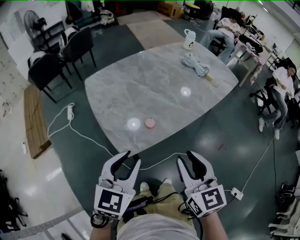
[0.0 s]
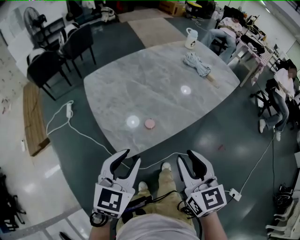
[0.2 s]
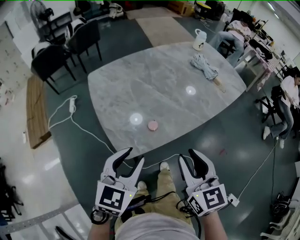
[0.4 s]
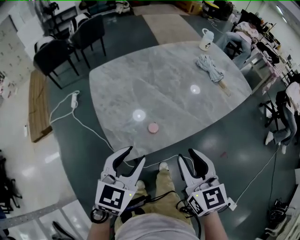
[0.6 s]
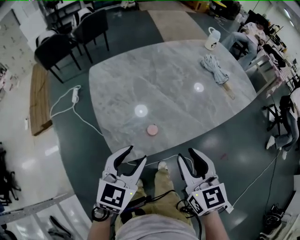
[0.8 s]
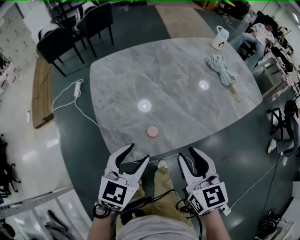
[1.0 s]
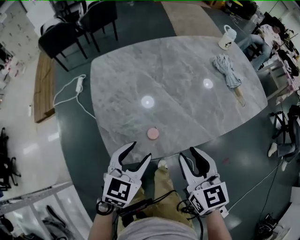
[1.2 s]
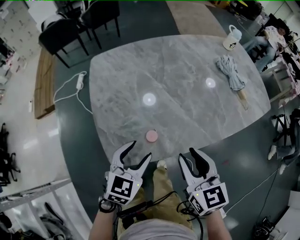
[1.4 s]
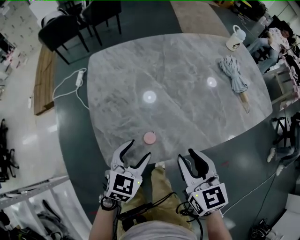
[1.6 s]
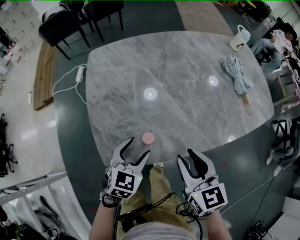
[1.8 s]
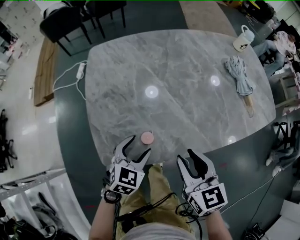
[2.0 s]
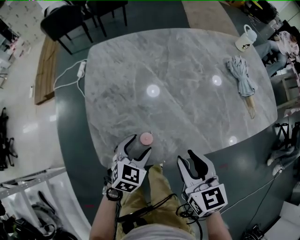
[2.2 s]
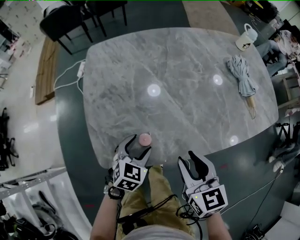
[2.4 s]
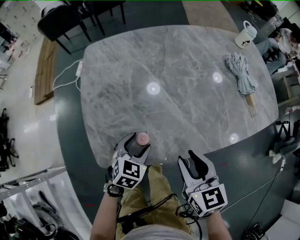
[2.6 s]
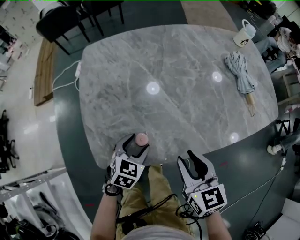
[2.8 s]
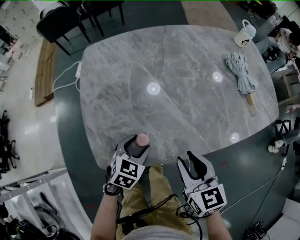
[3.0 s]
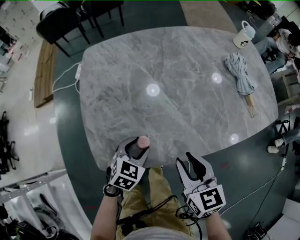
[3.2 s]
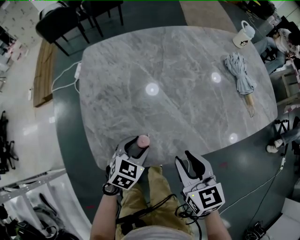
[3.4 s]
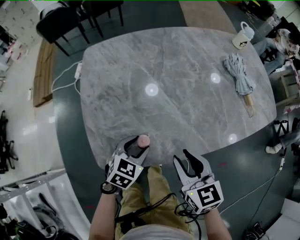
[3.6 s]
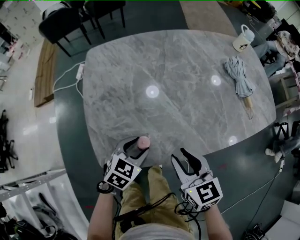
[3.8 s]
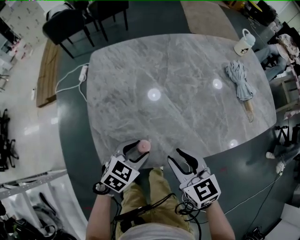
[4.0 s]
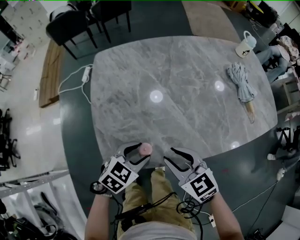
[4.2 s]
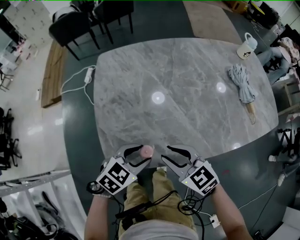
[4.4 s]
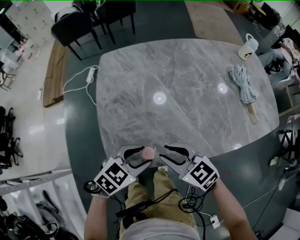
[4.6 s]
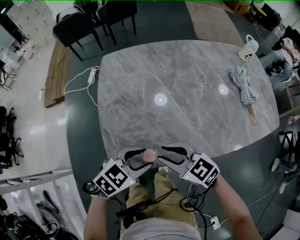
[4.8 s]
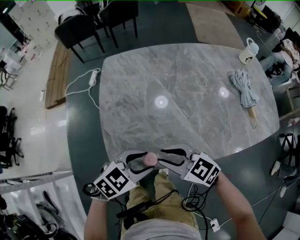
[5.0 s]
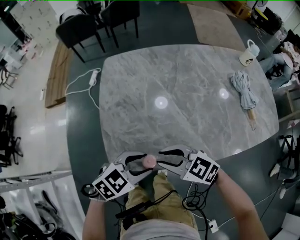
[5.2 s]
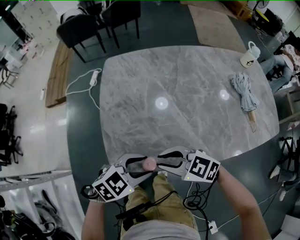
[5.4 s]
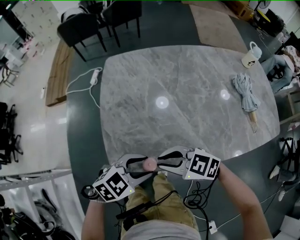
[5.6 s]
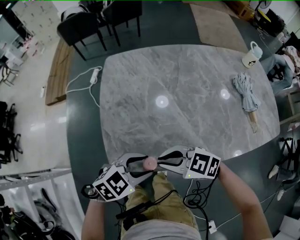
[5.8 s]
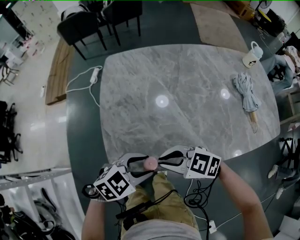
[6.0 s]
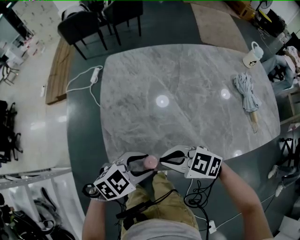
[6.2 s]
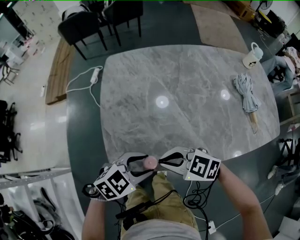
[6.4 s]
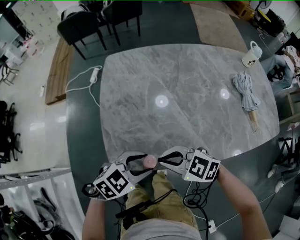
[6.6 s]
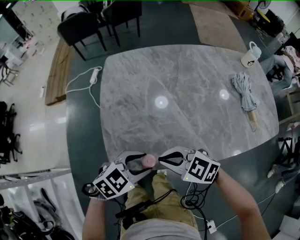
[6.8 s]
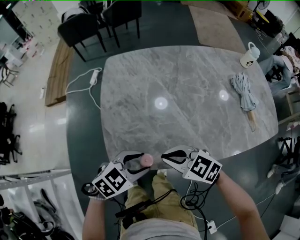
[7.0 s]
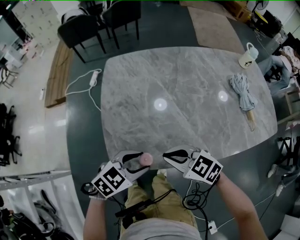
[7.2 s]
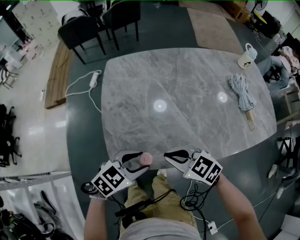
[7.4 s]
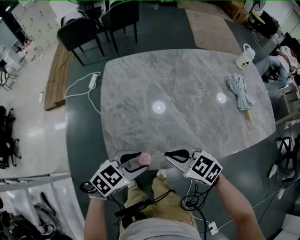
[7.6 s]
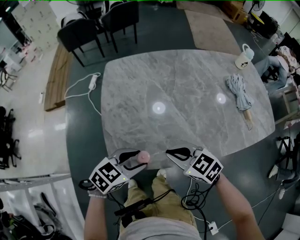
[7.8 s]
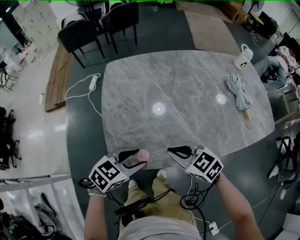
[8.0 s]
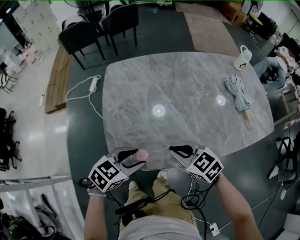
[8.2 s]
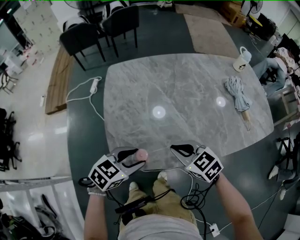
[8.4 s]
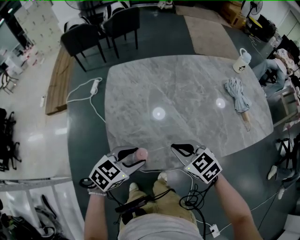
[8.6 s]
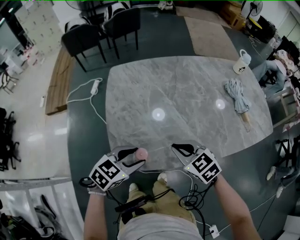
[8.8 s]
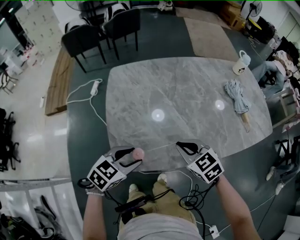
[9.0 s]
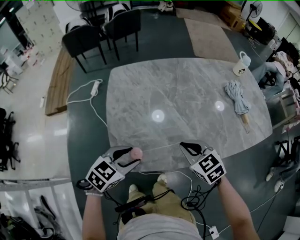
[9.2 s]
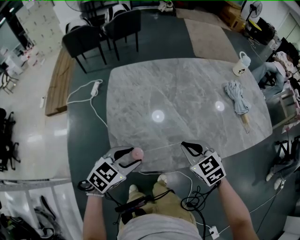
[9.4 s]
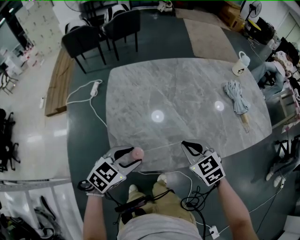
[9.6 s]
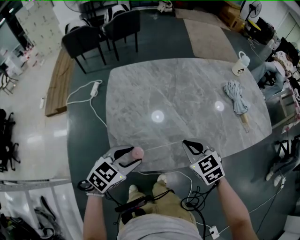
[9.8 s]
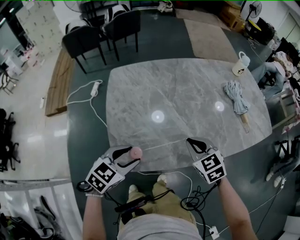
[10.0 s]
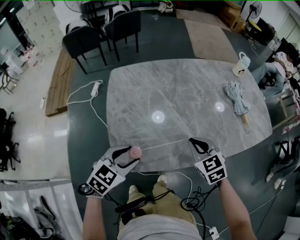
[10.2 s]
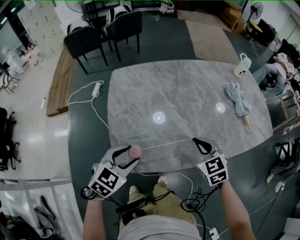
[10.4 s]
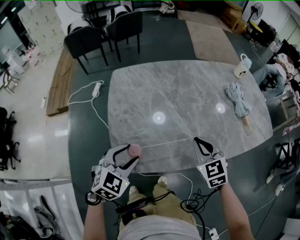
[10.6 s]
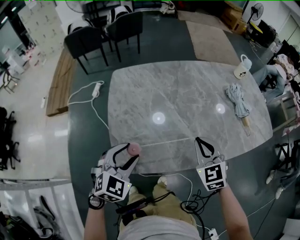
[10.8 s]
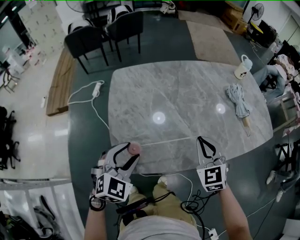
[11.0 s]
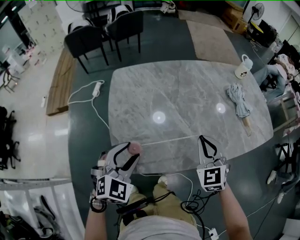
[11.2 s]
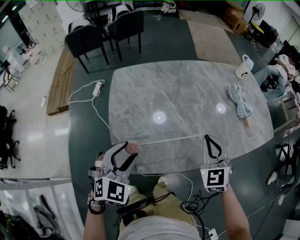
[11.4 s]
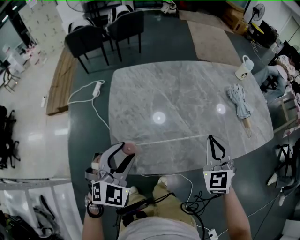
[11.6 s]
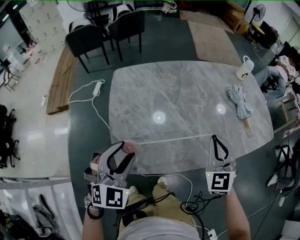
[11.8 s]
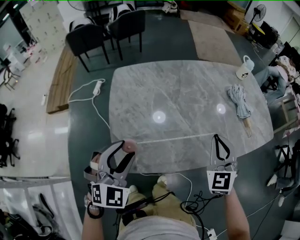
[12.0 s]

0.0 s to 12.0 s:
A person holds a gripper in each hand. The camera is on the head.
0.0 to 1.6 s: Both grippers move forward and downward, approximately 20 cm. The right gripper rotates approximately 20 degrees; the left gripper opens.
1.6 to 3.0 s: The left gripper moves downward, some 10 cm. The right gripper changes place by roughly 5 cm.
3.0 to 4.4 s: The right gripper moves to the left, some 10 cm, and swivels some 30 degrees; the left gripper moves upward, approximately 5 cm.
4.4 to 6.0 s: The right gripper turns by roughly 40 degrees, and closes up.
6.0 to 7.6 s: The right gripper turns by roughly 20 degrees.
7.6 to 9.0 s: The right gripper shifts by roughly 5 cm, and changes its angle by approximately 20 degrees.
9.0 to 10.4 s: The right gripper heads to the right, covering some 5 cm.
10.4 to 12.0 s: Both grippers travel together upward, about 10 cm. The left gripper turns by approximately 30 degrees. Meanwhile the right gripper turns by some 30 degrees.

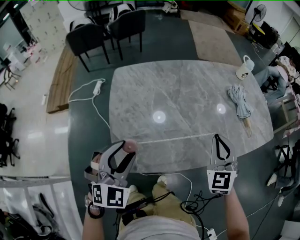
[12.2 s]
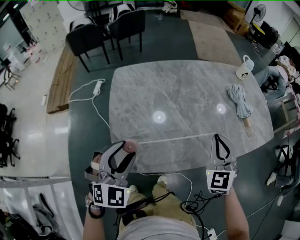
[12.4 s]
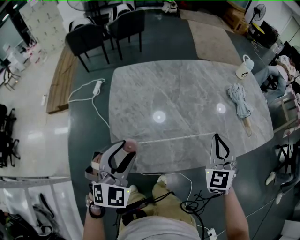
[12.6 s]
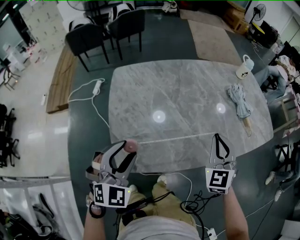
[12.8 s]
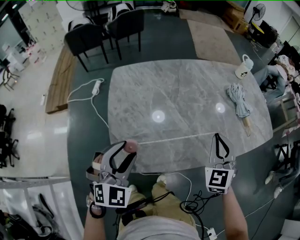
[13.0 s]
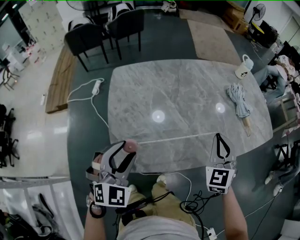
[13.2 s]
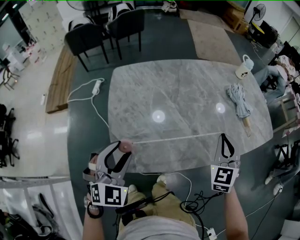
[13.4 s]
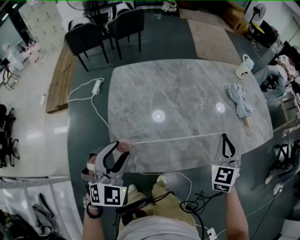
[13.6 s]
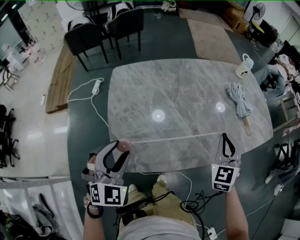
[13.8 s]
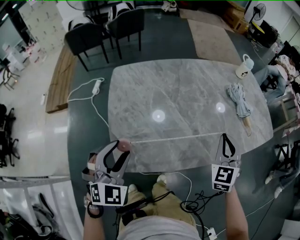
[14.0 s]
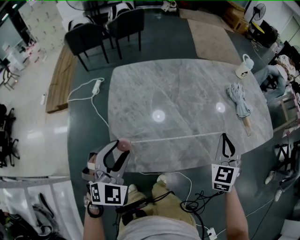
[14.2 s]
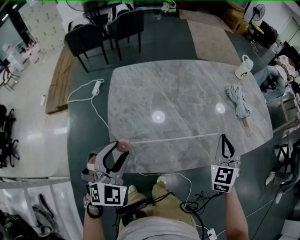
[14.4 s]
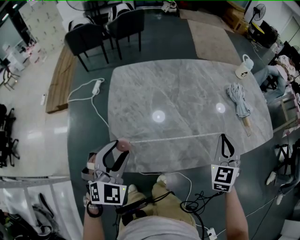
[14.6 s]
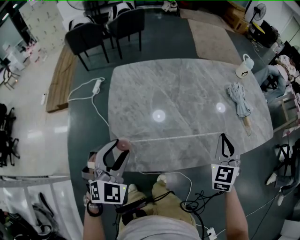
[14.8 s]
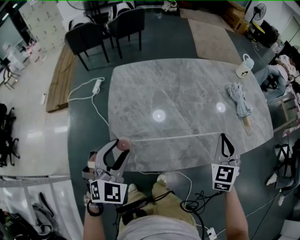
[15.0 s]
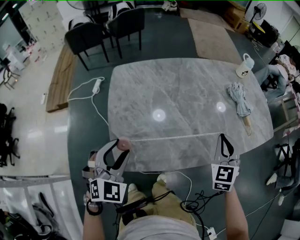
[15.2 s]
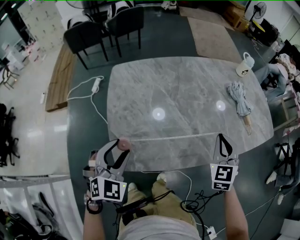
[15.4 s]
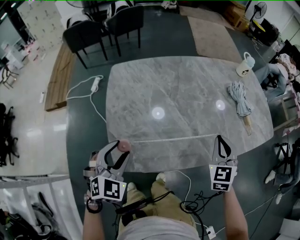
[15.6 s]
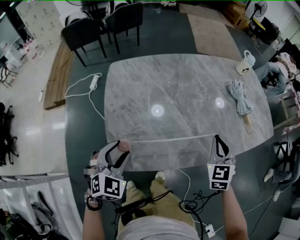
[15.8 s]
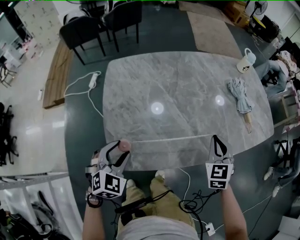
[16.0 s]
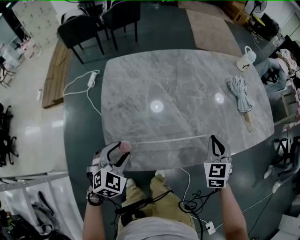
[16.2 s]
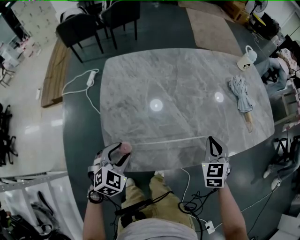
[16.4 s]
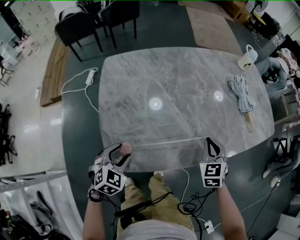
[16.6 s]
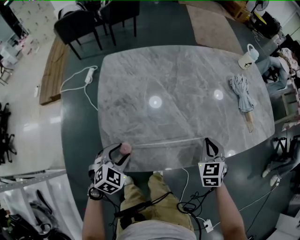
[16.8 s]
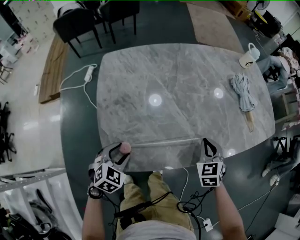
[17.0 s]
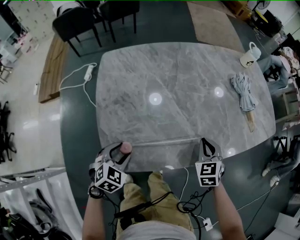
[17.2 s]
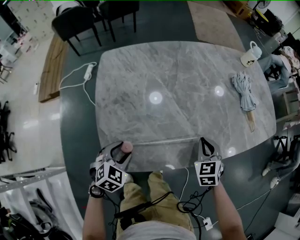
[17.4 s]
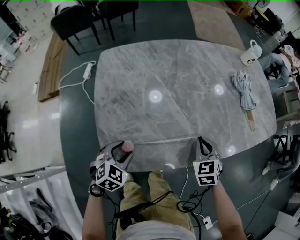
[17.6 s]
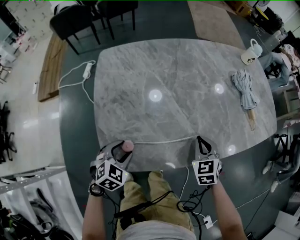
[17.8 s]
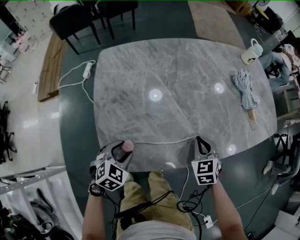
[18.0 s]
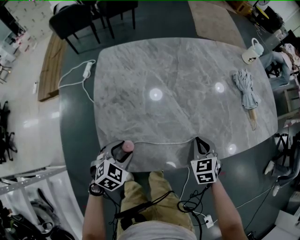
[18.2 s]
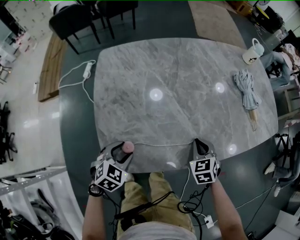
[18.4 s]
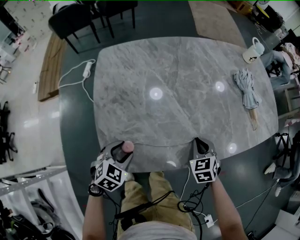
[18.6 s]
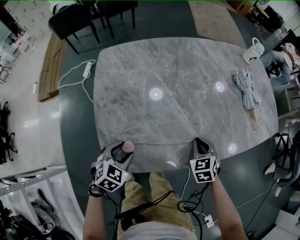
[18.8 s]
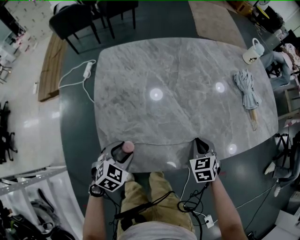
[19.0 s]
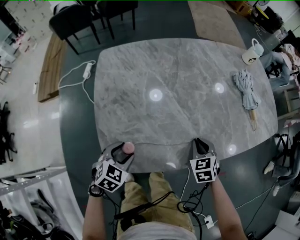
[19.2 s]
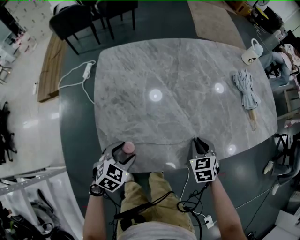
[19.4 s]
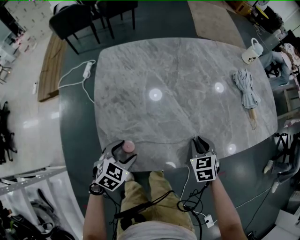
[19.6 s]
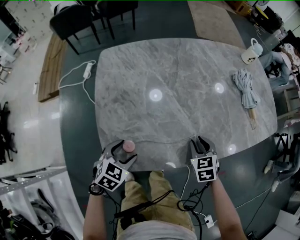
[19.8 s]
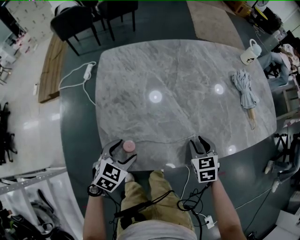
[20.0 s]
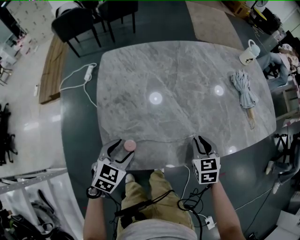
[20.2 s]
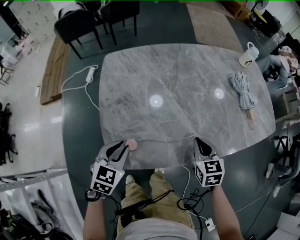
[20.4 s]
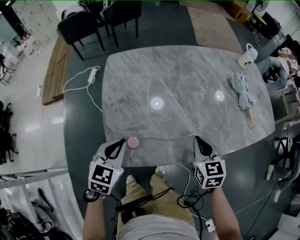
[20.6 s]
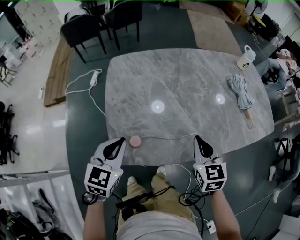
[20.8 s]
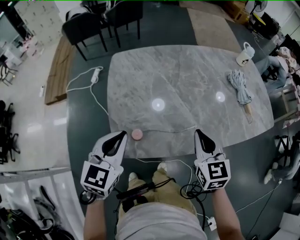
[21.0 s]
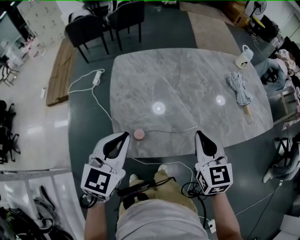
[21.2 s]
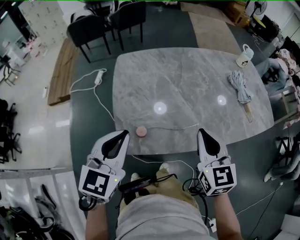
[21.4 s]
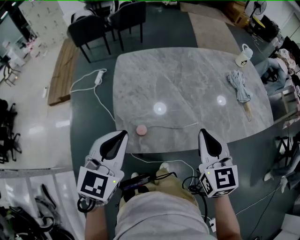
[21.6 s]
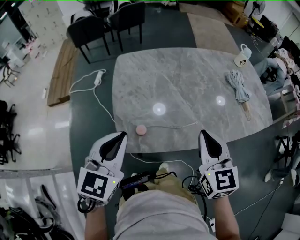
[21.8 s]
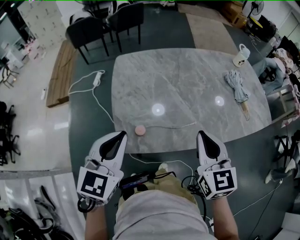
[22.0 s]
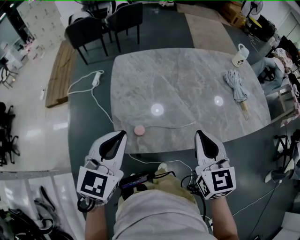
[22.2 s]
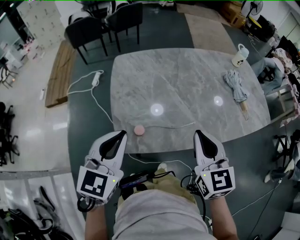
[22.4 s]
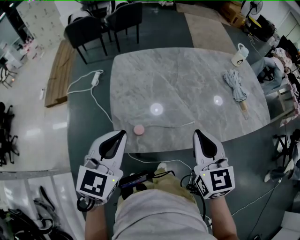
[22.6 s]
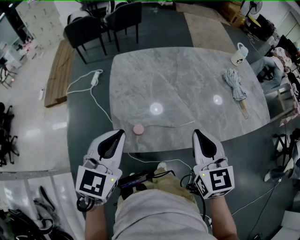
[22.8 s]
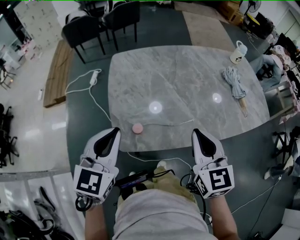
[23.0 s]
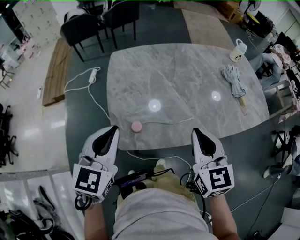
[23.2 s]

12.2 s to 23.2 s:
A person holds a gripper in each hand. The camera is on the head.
12.2 to 15.4 s: The grippers move only a little.
15.4 to 17.0 s: Both grippers travel together downward, approximately 15 cm. The left gripper changes its angle by some 20 degrees.
17.0 to 18.4 s: The right gripper ends up approximately 5 cm from where it was.
18.4 to 20.0 s: The right gripper opens its fingers.
20.0 to 21.6 s: Both grippers move upward, some 25 cm. The left gripper turns by about 30 degrees, and closes, while the right gripper angles its fingers upward, by approximately 30 degrees, and closes its fingers.
21.6 to 23.2 s: The grippers move only a little.

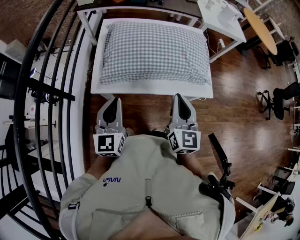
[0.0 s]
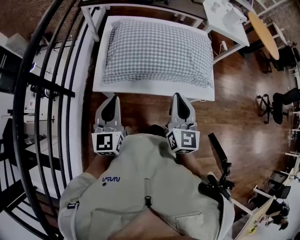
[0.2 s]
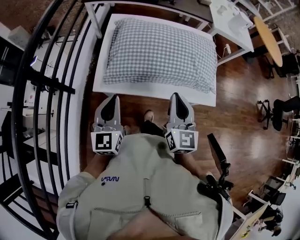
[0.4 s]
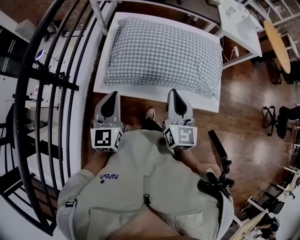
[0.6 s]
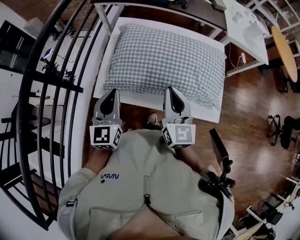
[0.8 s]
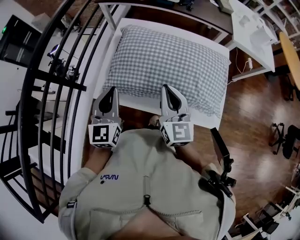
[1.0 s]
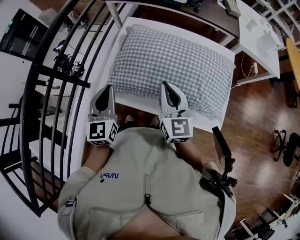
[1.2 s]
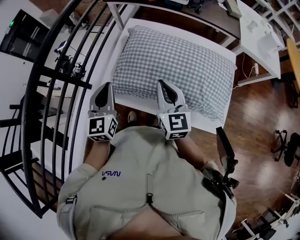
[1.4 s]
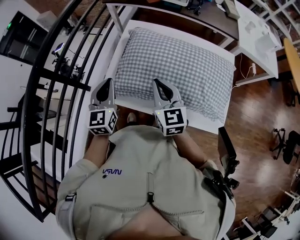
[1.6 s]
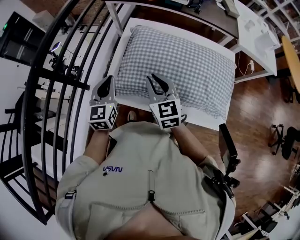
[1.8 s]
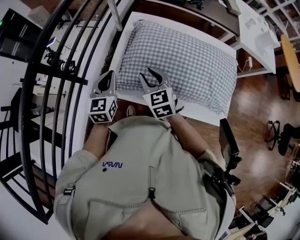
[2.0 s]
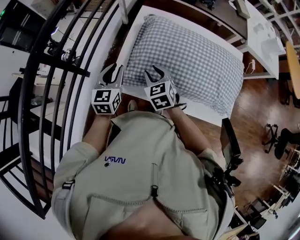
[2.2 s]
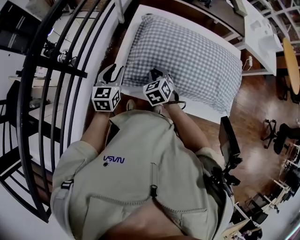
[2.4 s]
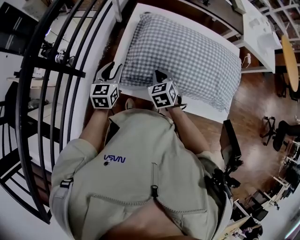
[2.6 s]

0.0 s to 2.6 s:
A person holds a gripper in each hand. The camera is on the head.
0.0 to 1.2 s: Both grippers move forward, roughly 15 cm. The right gripper rotates approximately 20 degrees.
1.2 to 2.6 s: The left gripper moves downward, forward and to the left, some 20 cm, and changes its angle by some 20 degrees; the right gripper is displaced downward and to the left by approximately 20 cm, tips its fingers downward by some 40 degrees, and opens, then closes again.
